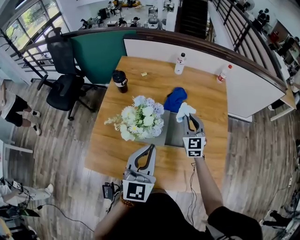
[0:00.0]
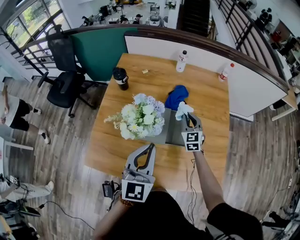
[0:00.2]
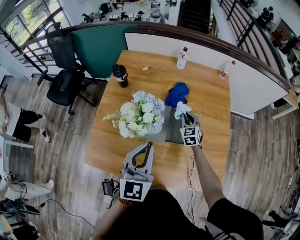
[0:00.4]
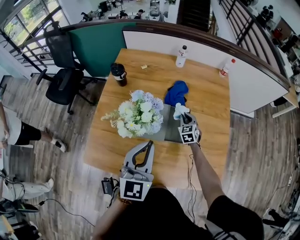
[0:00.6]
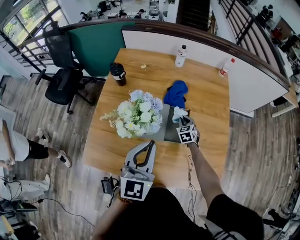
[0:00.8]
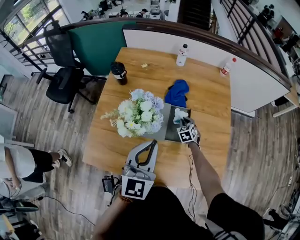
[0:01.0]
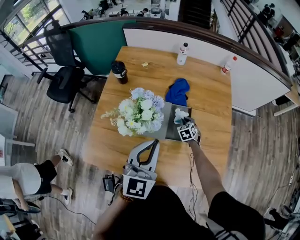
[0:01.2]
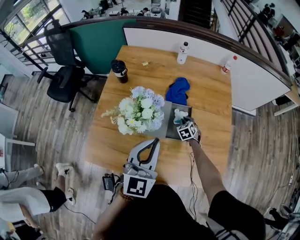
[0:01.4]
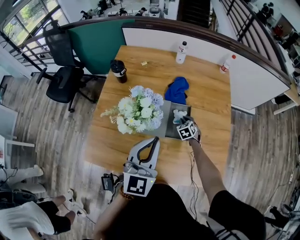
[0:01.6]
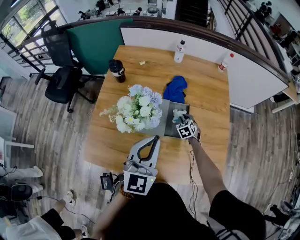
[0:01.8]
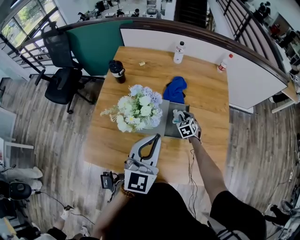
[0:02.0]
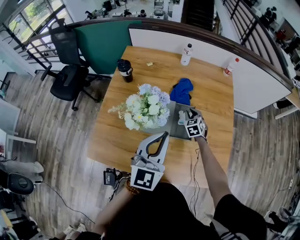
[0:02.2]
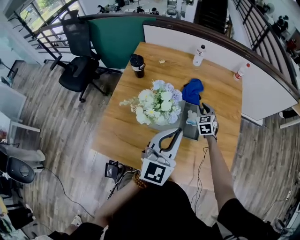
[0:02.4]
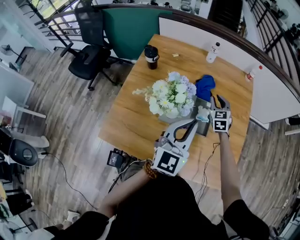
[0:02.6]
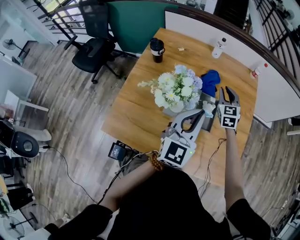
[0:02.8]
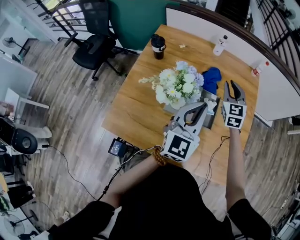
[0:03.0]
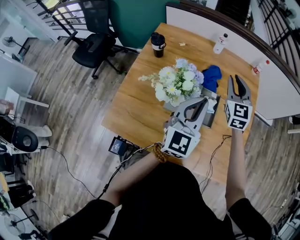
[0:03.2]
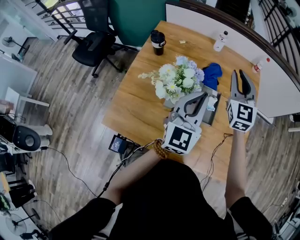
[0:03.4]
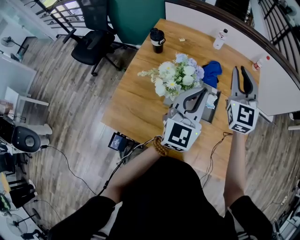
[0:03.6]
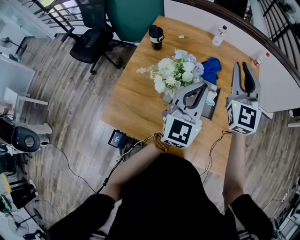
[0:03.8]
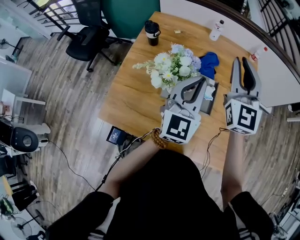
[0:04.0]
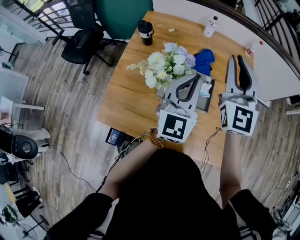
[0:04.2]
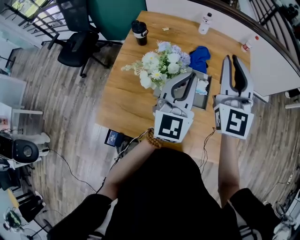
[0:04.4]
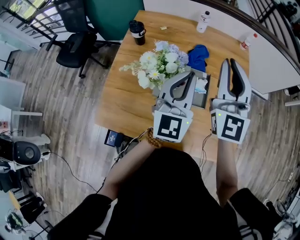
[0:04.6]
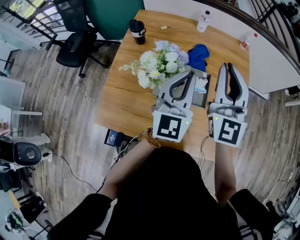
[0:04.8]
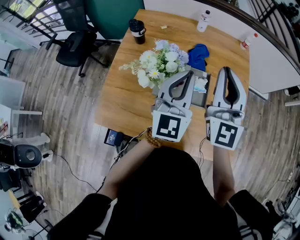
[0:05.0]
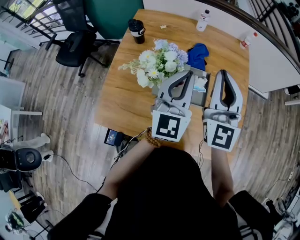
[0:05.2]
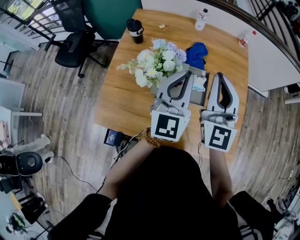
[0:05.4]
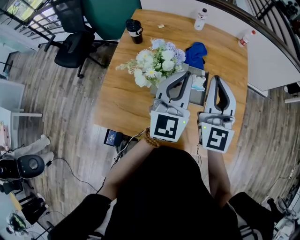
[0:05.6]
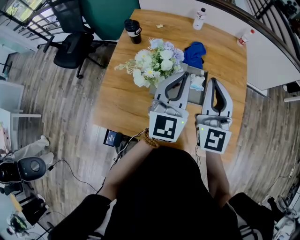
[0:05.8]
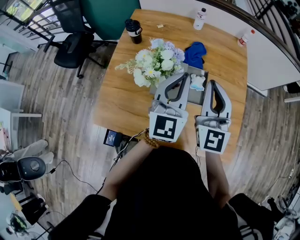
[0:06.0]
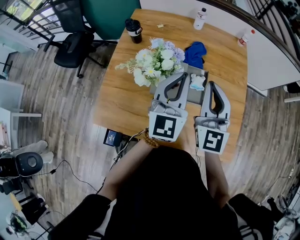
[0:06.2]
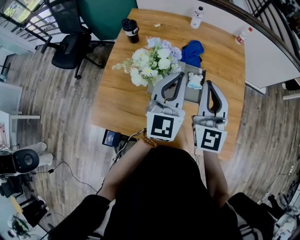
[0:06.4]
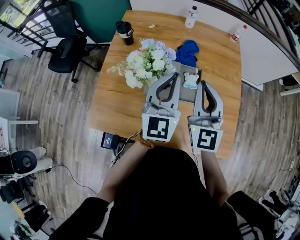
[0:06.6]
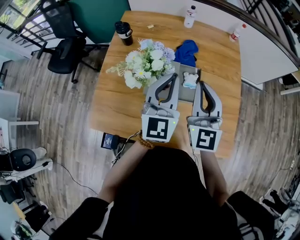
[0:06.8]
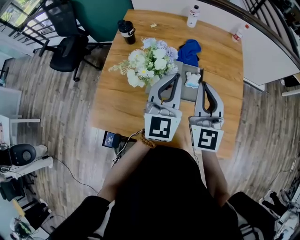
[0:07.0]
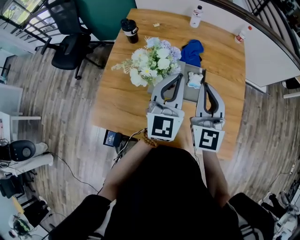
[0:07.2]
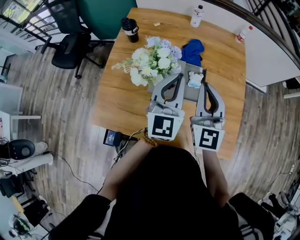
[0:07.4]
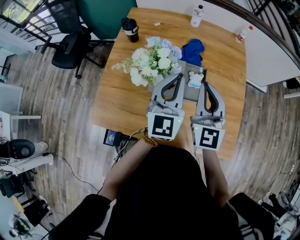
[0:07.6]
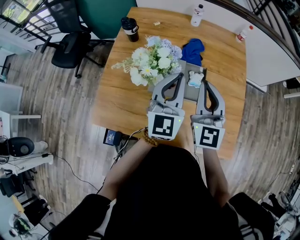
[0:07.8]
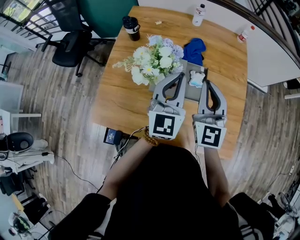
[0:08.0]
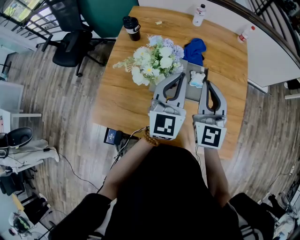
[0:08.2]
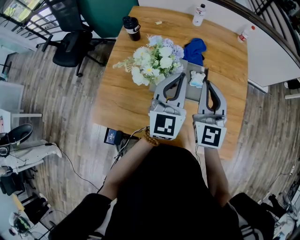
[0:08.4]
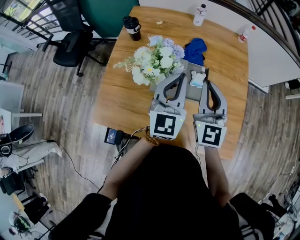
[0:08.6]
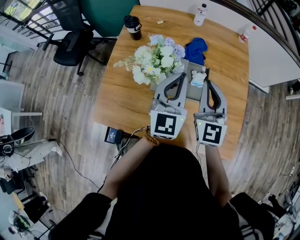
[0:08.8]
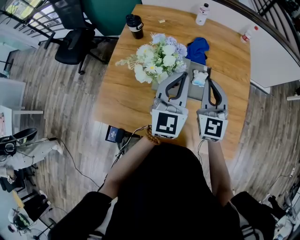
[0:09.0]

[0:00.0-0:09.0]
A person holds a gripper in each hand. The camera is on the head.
0:00.0 to 0:01.6: The right gripper shifts approximately 25 cm downward, and tilts its fingers about 40 degrees downward.
0:01.6 to 0:03.0: The left gripper ends up approximately 5 cm from where it was. Meanwhile the right gripper shifts approximately 30 cm upward, and tilts its fingers some 40 degrees upward.
0:03.0 to 0:04.4: The right gripper travels upward and backward by about 20 cm, and rotates roughly 30 degrees.
0:04.4 to 0:06.0: The right gripper travels downward and backward by roughly 10 cm.
0:06.0 to 0:07.6: The grippers stay close to where they were, moving slightly.
0:07.6 to 0:09.0: The right gripper changes place by roughly 5 cm.

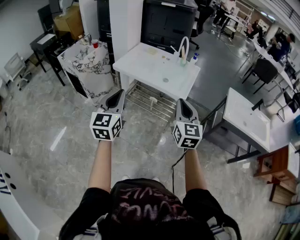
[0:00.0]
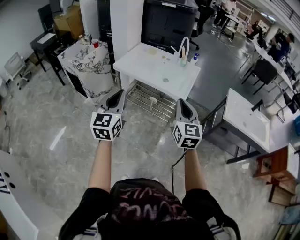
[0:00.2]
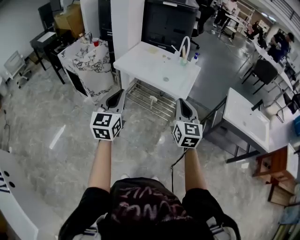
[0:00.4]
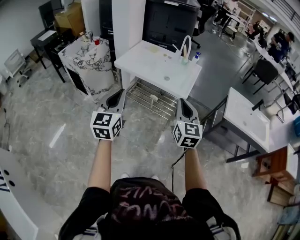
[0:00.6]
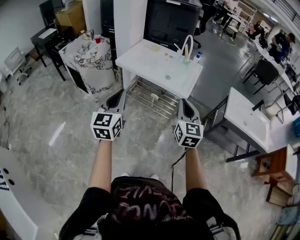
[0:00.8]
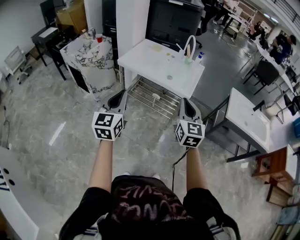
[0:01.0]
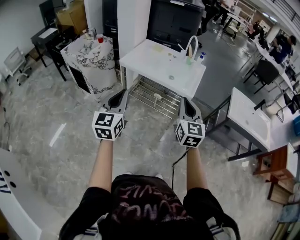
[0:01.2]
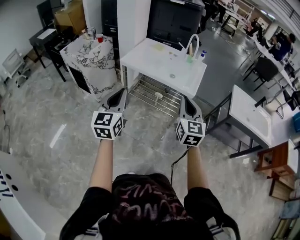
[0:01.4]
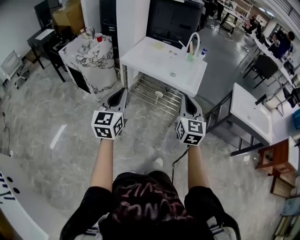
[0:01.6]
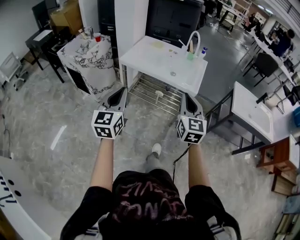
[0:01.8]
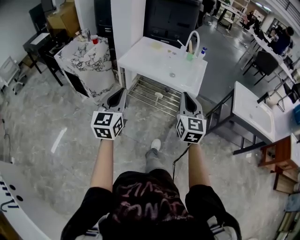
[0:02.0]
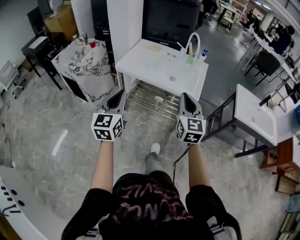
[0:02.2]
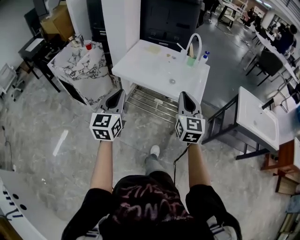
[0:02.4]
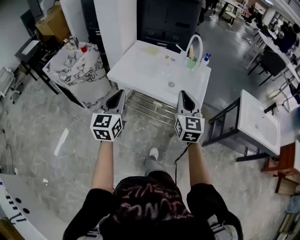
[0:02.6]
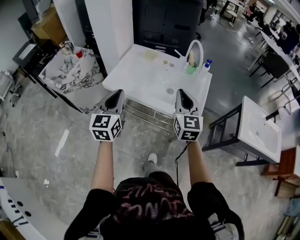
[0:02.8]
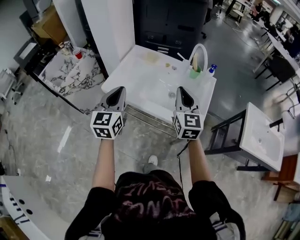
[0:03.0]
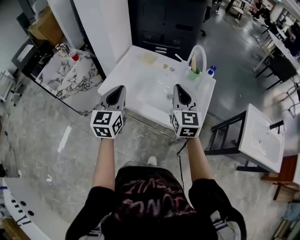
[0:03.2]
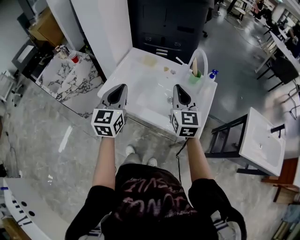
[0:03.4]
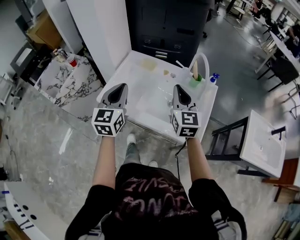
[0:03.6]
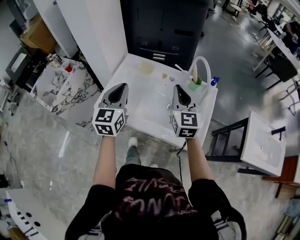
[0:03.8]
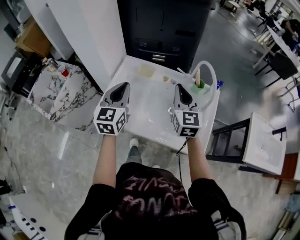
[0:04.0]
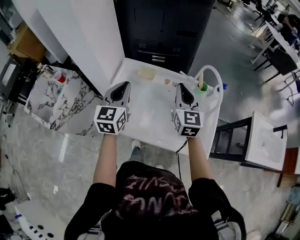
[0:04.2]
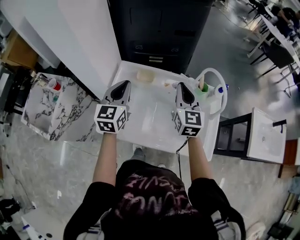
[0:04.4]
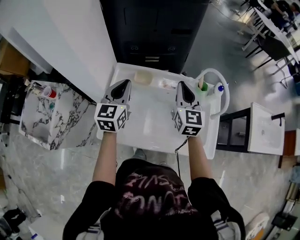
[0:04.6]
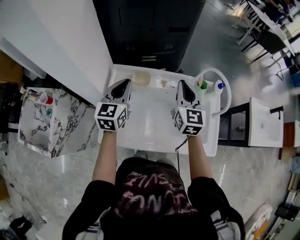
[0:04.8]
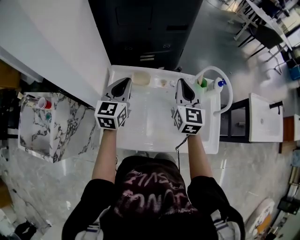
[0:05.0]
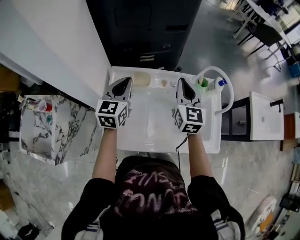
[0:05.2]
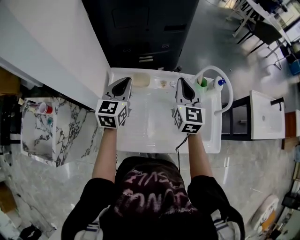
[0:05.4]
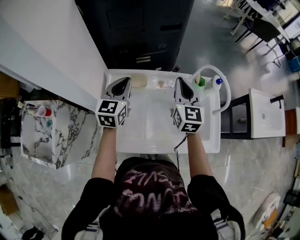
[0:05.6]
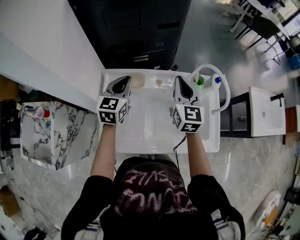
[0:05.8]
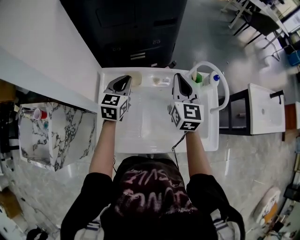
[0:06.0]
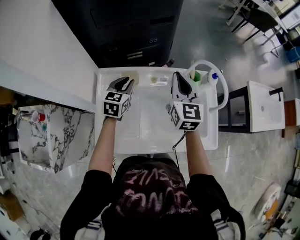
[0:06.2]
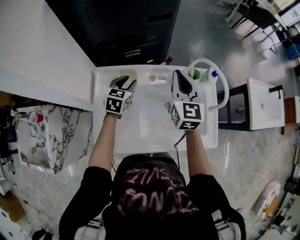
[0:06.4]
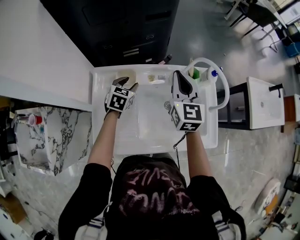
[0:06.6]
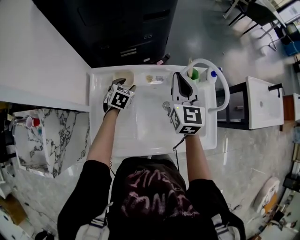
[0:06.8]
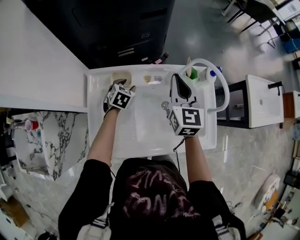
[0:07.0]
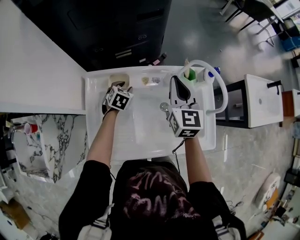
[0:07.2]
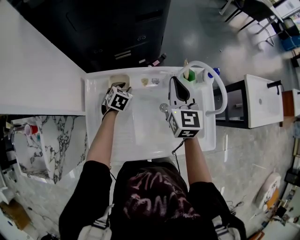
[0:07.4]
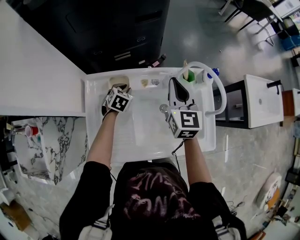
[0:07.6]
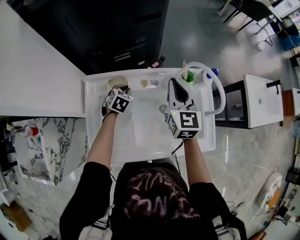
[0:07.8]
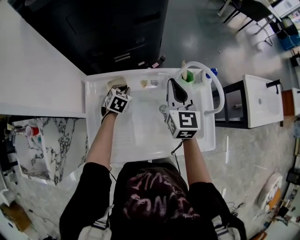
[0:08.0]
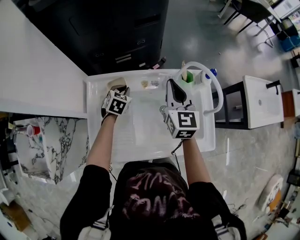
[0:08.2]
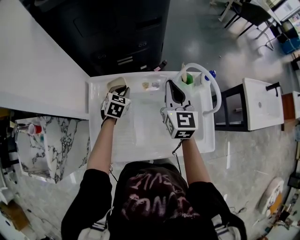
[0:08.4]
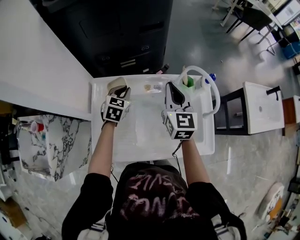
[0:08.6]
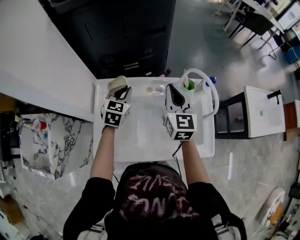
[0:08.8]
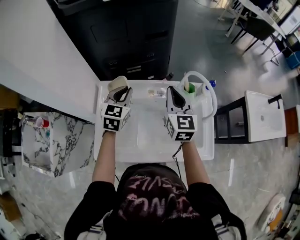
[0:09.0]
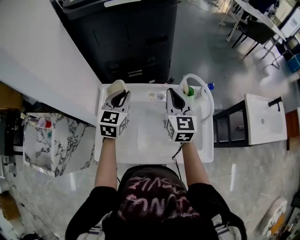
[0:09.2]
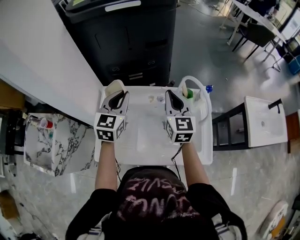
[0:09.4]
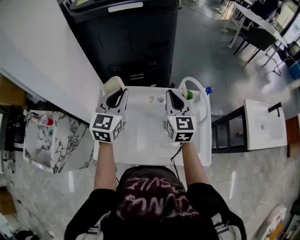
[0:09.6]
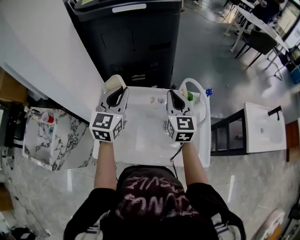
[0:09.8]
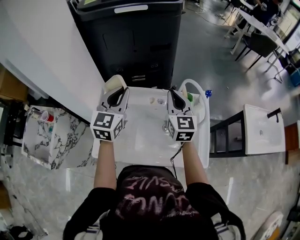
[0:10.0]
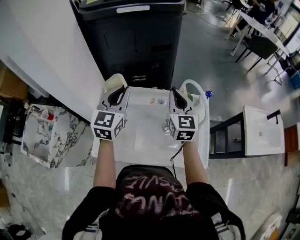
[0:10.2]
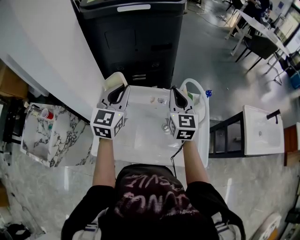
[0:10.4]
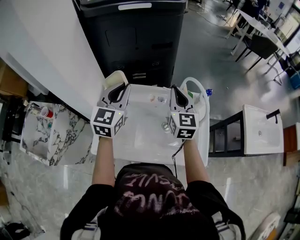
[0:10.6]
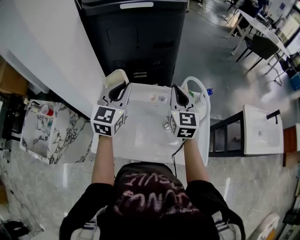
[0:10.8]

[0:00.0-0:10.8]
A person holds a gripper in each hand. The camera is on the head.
0:00.0 to 0:01.6: The two grippers go approximately 10 cm to the left.
0:01.6 to 0:03.0: The pair of grippers is taken forward, about 40 cm.
0:03.0 to 0:04.6: Both grippers move forward, some 30 cm.
0:04.6 to 0:06.2: The left gripper moves downward and forward, approximately 15 cm, and changes its angle by about 20 degrees, while the right gripper moves forward, roughly 5 cm.
0:06.2 to 0:07.8: The left gripper shifts some 15 cm downward, changes its angle by some 30 degrees, and opens and closes again.
0:07.8 to 0:09.2: The right gripper travels upward by about 5 cm; the left gripper goes approximately 25 cm upward, and tilts its fingers approximately 30 degrees upward.
0:09.2 to 0:10.8: The left gripper is displaced upward by roughly 10 cm.

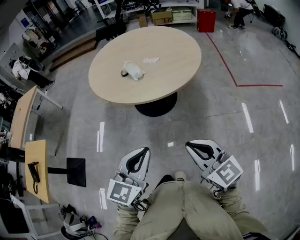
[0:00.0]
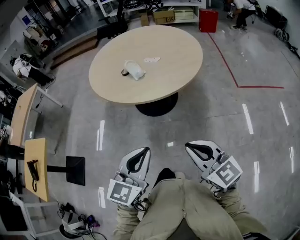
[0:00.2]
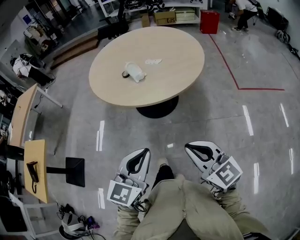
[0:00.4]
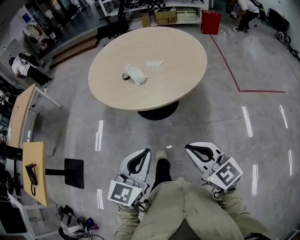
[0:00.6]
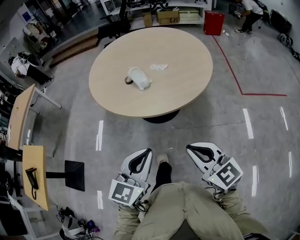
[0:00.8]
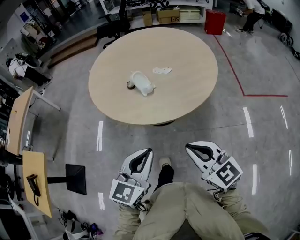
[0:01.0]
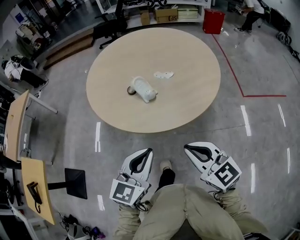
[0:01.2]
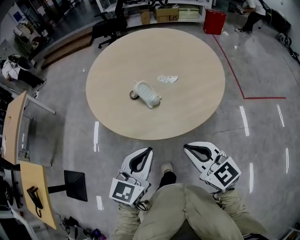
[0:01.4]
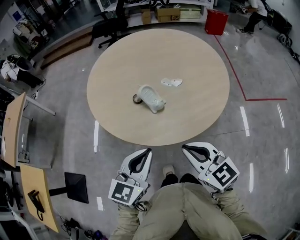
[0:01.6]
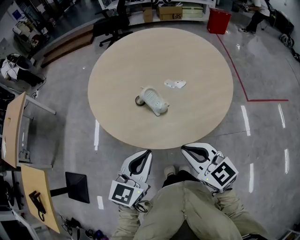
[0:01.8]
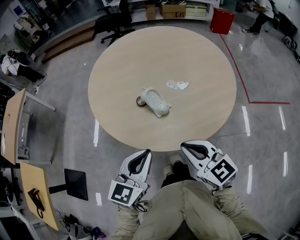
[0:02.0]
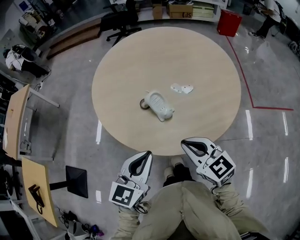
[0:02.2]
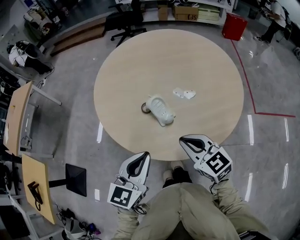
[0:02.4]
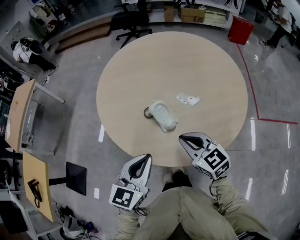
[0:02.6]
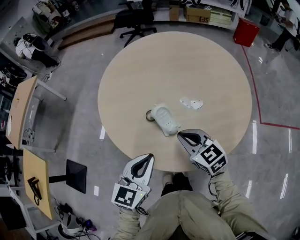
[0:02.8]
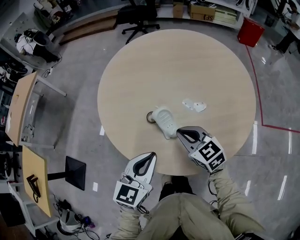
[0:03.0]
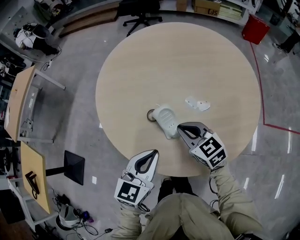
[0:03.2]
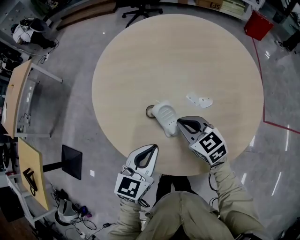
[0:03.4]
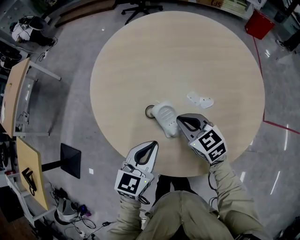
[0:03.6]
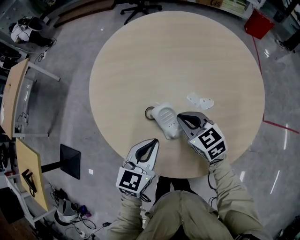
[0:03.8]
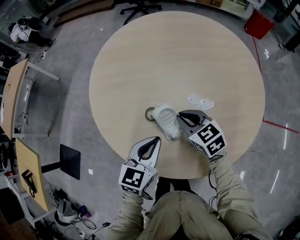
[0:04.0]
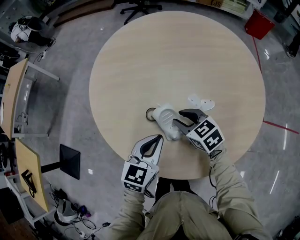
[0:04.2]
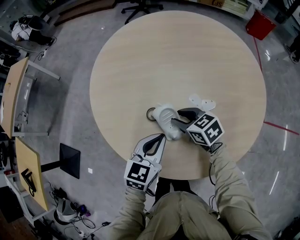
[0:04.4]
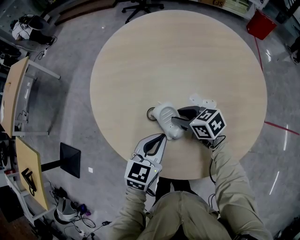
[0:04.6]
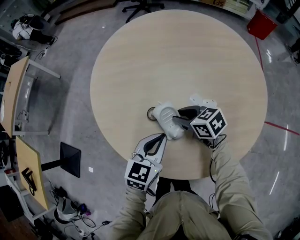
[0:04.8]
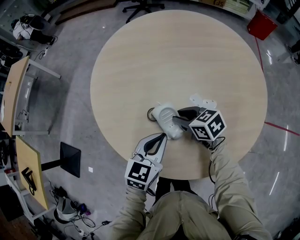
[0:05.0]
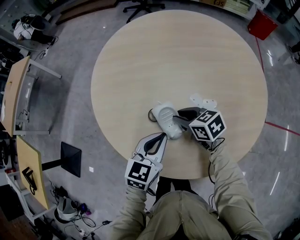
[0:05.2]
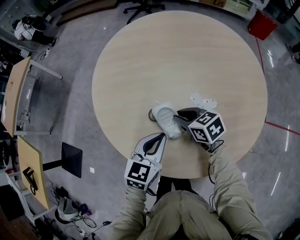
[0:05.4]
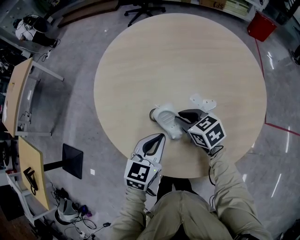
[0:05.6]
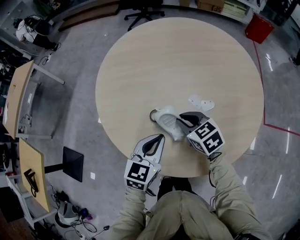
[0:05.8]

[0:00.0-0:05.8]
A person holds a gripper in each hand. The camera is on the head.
0:00.0 to 0:01.4: Both grippers move forward, approximately 25 cm.
0:01.4 to 0:02.8: The left gripper shifts some 15 cm forward. Meanwhile the right gripper shifts about 25 cm forward.
0:02.8 to 0:04.4: The two grippers go roughly 15 cm downward and forward. The right gripper swivels roughly 20 degrees, and opens up.
0:04.4 to 0:05.8: The grippers move only a little.
